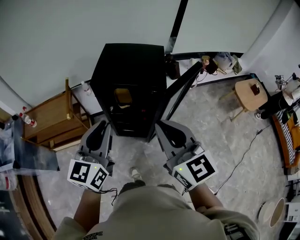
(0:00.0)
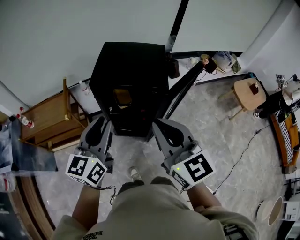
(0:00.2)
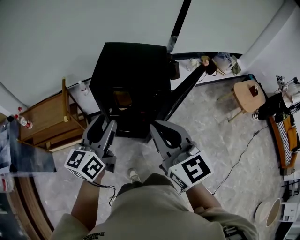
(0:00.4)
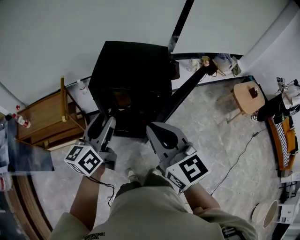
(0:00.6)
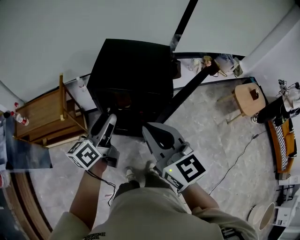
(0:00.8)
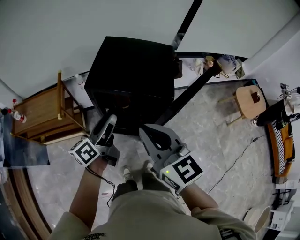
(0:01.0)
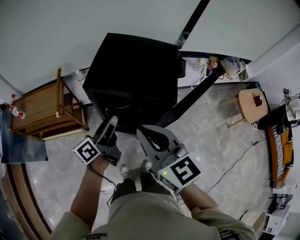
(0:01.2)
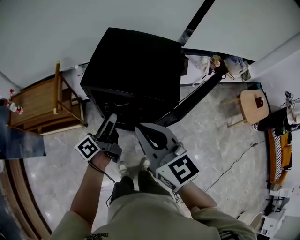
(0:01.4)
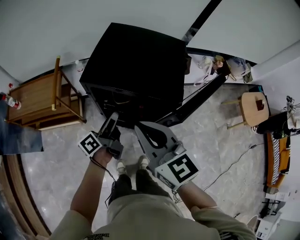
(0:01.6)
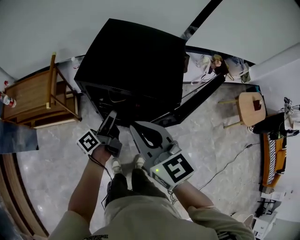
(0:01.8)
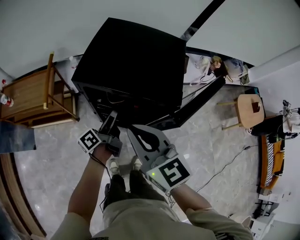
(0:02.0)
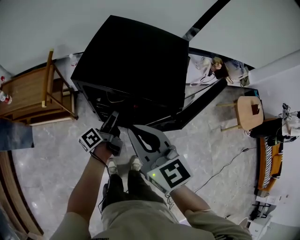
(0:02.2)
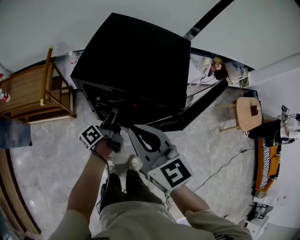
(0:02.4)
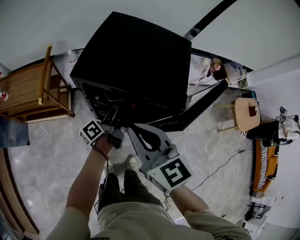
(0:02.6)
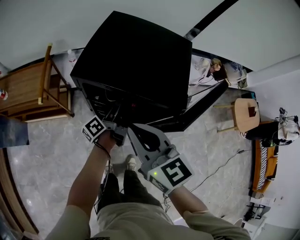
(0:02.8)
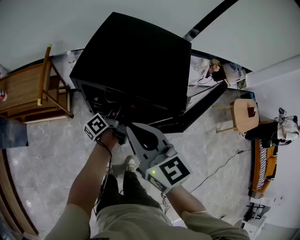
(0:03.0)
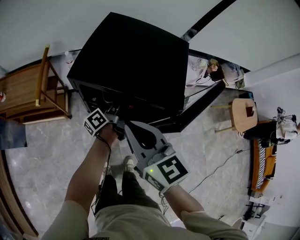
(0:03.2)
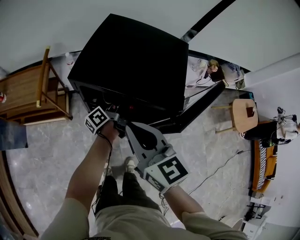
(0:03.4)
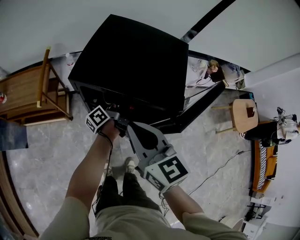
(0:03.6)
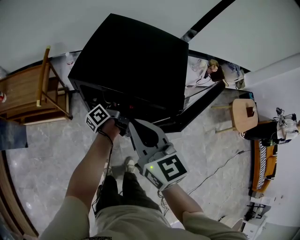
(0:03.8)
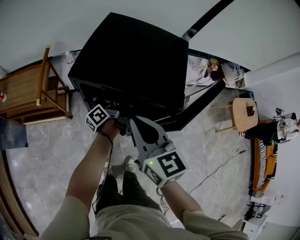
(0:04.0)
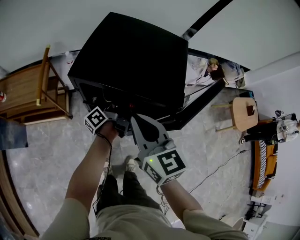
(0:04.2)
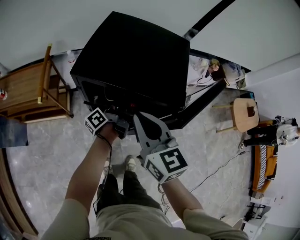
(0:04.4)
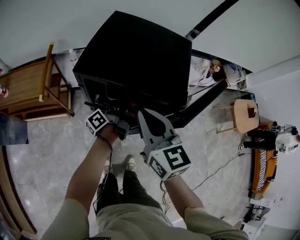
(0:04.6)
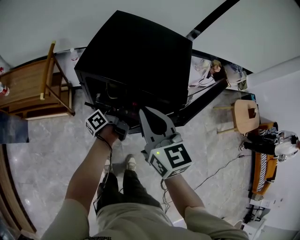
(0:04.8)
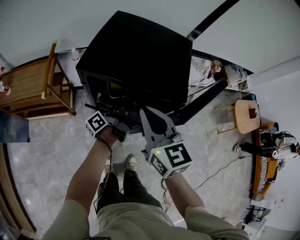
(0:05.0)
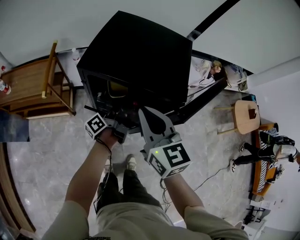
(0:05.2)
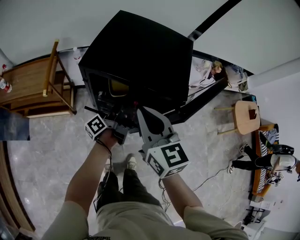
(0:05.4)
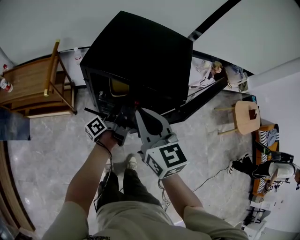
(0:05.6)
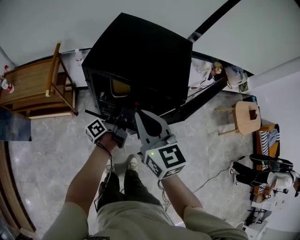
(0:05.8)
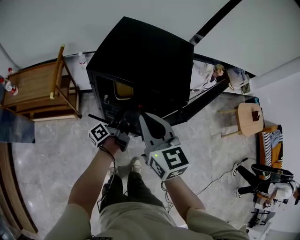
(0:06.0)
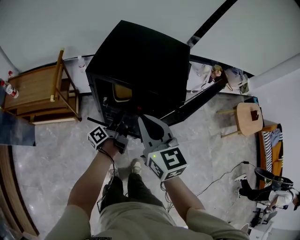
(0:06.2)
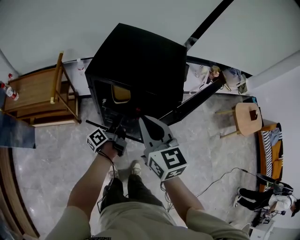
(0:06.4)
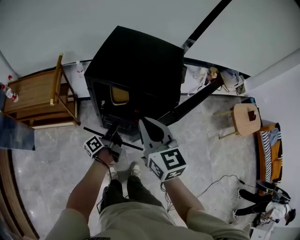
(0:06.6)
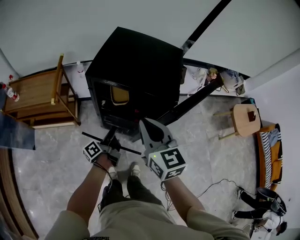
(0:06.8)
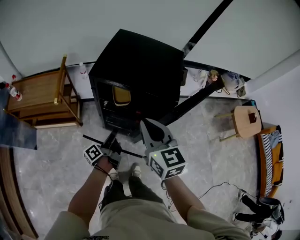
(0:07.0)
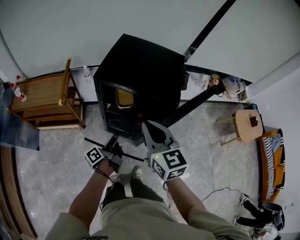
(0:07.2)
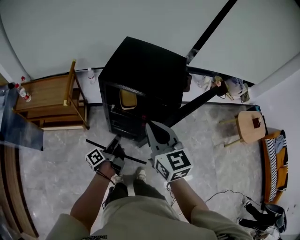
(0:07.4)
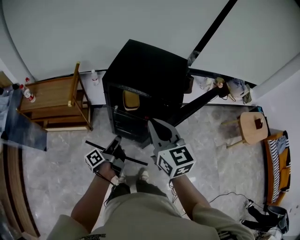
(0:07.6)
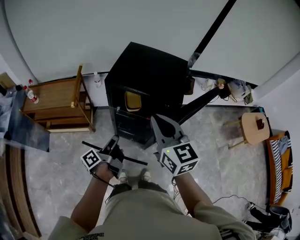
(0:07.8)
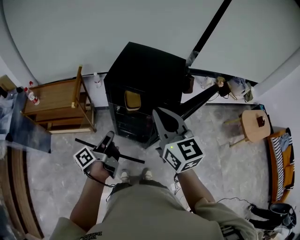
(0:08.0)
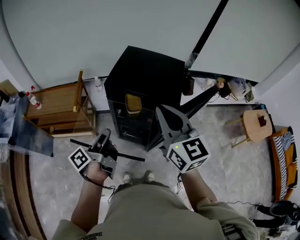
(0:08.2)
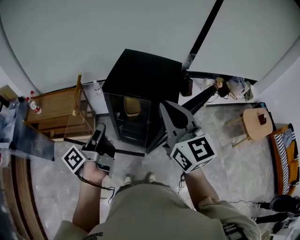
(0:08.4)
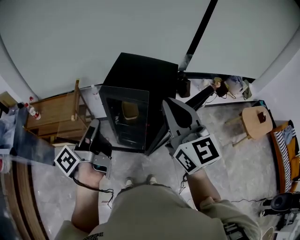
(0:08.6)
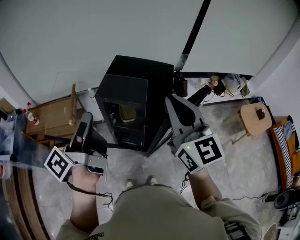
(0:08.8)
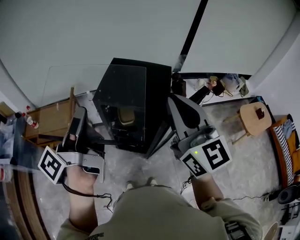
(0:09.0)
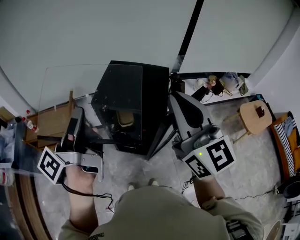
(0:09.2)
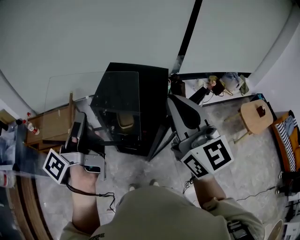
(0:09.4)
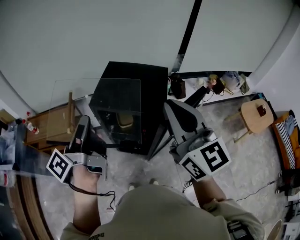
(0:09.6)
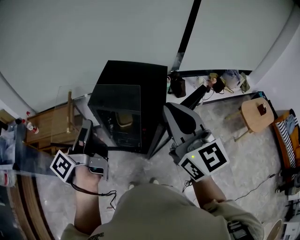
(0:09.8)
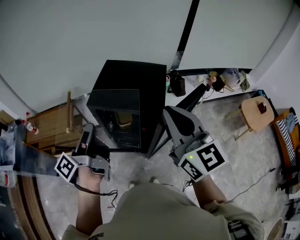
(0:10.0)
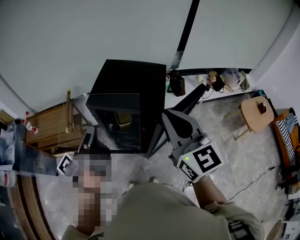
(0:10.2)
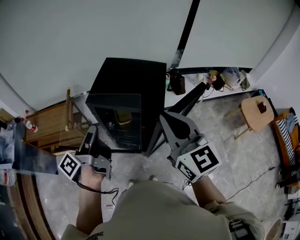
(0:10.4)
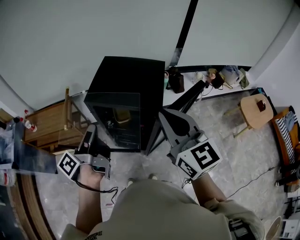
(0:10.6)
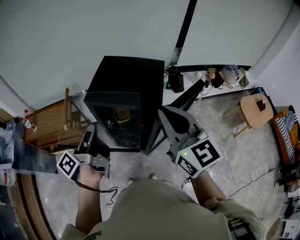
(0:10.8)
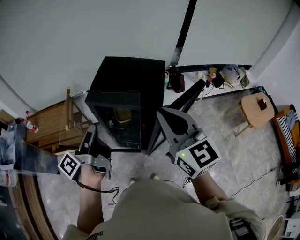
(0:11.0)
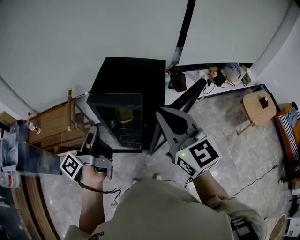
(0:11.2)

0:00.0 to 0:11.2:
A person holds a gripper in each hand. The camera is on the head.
0:00.0 to 0:01.6: The left gripper goes some 30 cm downward and forward, rotates around the line of its fingers by about 60 degrees, counterclockwise from behind, and opens, while the right gripper heads forward and downward, covering approximately 20 cm.
0:01.6 to 0:03.2: The right gripper travels downward by about 5 cm, while the left gripper goes some 15 cm downward, forward and to the right.
0:03.2 to 0:04.8: The left gripper closes its fingers.
0:04.8 to 0:06.4: The left gripper shifts some 10 cm backward; the right gripper travels backward by roughly 5 cm.
0:06.4 to 0:08.0: The right gripper heads upward, covering about 10 cm. Meanwhile the left gripper heads upward, backward and to the left, covering some 20 cm.
0:08.0 to 0:09.6: The left gripper moves upward, some 25 cm. Meanwhile the right gripper goes approximately 15 cm upward and to the right.
0:09.6 to 0:11.2: Both grippers move downward, some 10 cm.

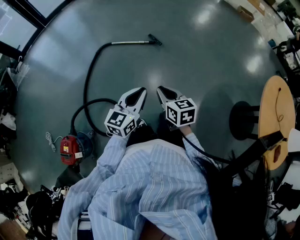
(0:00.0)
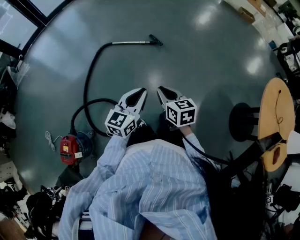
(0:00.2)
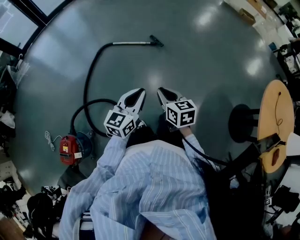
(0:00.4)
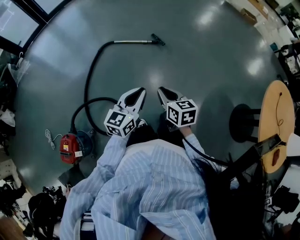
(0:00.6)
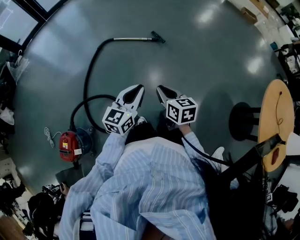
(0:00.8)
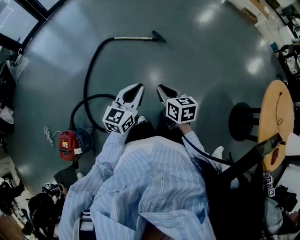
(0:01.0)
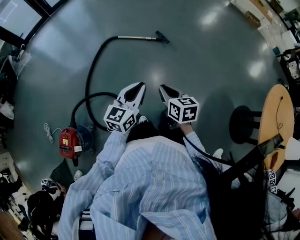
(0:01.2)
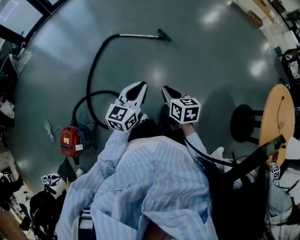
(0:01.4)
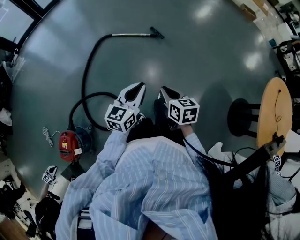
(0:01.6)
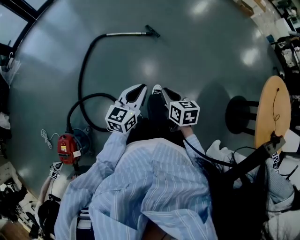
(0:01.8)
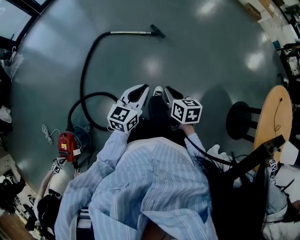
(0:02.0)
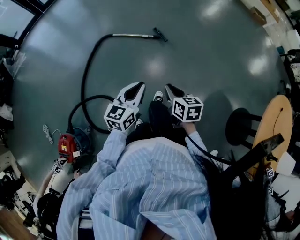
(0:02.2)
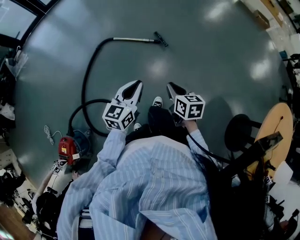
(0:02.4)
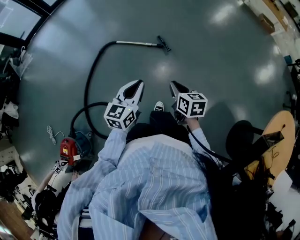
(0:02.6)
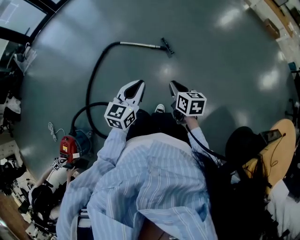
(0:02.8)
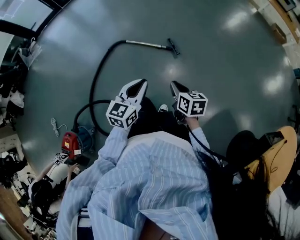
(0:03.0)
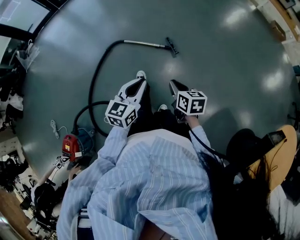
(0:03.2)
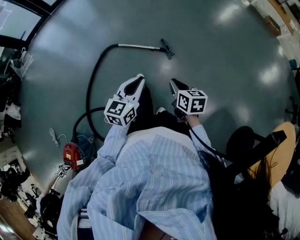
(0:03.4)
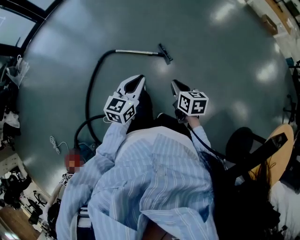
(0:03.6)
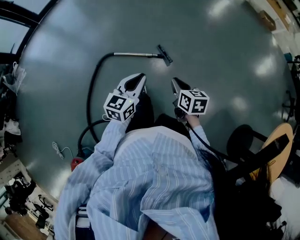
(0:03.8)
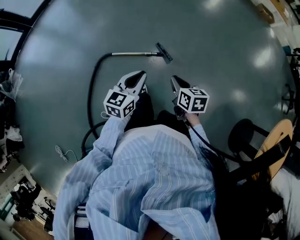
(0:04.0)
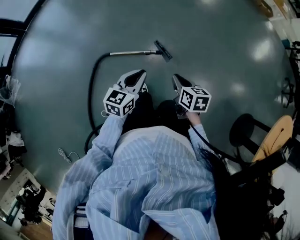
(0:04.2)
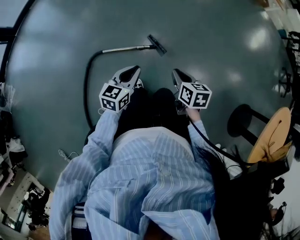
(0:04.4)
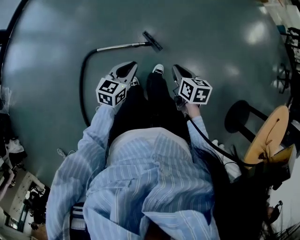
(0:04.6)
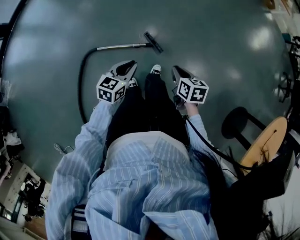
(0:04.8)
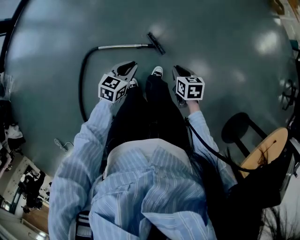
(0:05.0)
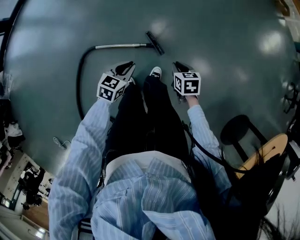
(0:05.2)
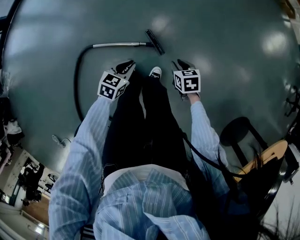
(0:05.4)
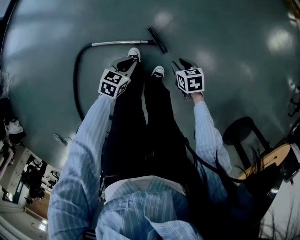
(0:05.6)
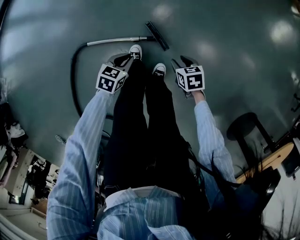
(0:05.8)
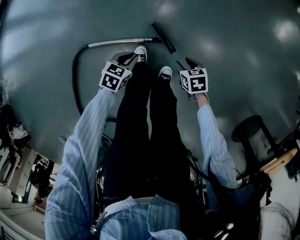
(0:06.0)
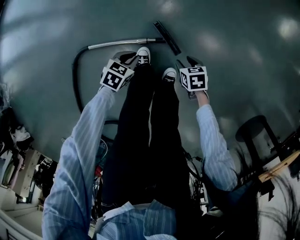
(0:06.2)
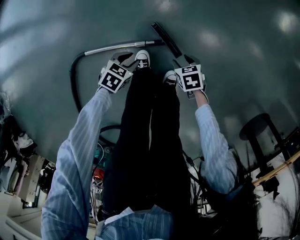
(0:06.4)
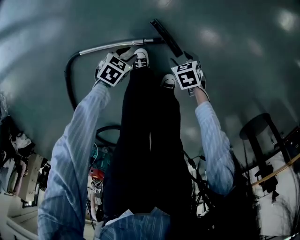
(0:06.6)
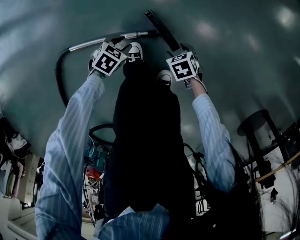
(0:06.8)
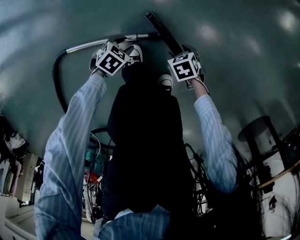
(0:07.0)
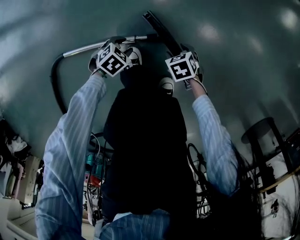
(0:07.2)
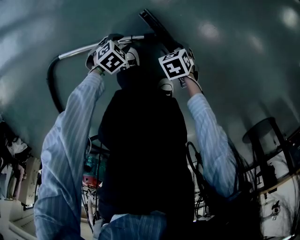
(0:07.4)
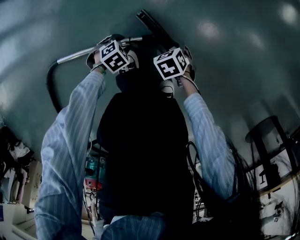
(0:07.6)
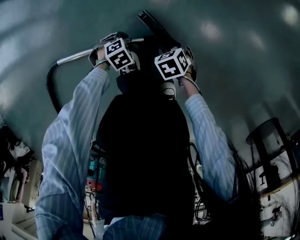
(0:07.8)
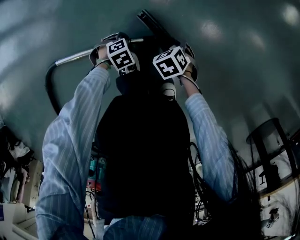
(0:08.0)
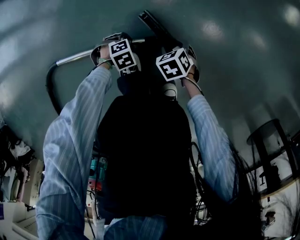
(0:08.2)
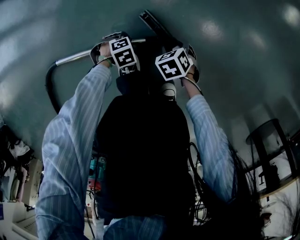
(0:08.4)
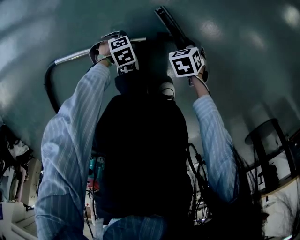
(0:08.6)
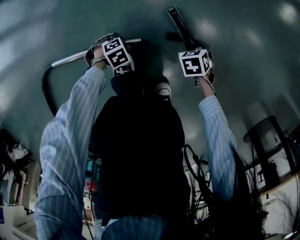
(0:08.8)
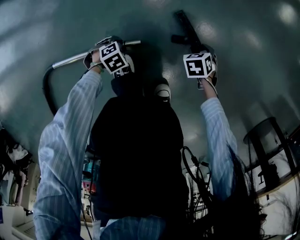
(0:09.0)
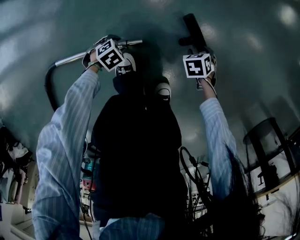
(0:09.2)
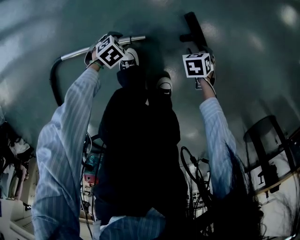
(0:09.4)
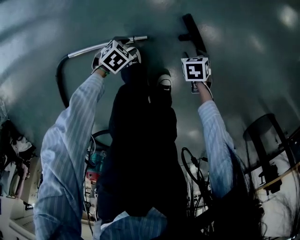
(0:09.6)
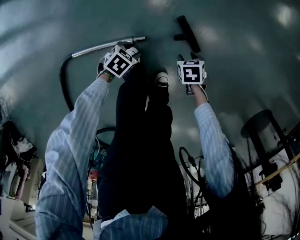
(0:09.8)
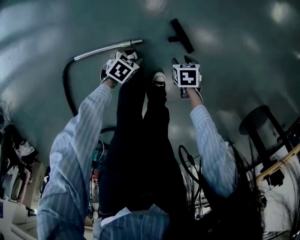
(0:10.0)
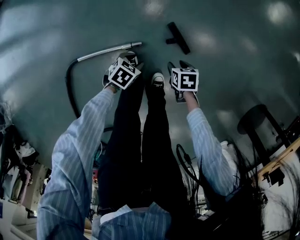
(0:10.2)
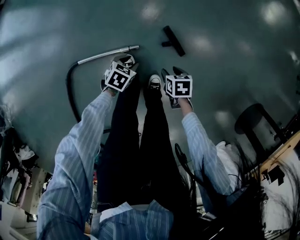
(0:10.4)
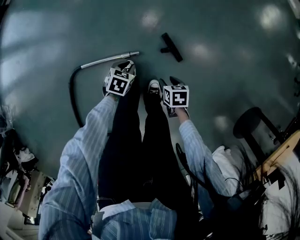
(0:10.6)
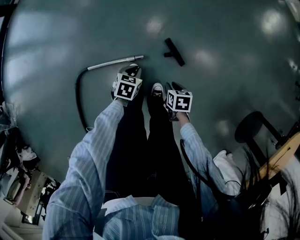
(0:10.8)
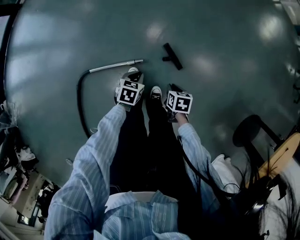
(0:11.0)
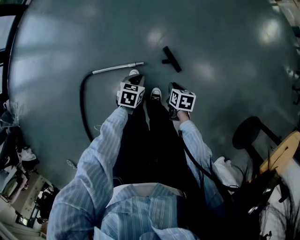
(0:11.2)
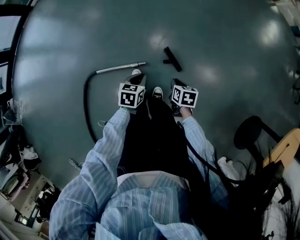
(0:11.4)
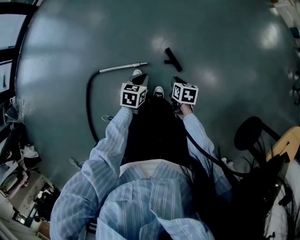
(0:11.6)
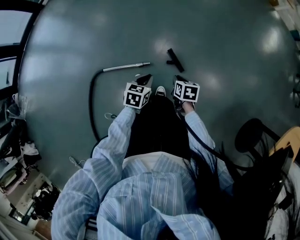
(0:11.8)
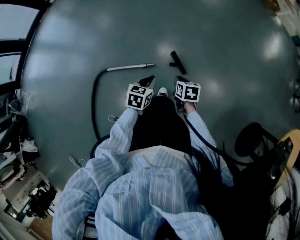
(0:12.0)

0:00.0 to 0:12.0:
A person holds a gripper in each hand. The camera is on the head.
0:00.0 to 0:01.6: The left gripper moves about 5 cm.
0:01.6 to 0:03.0: The grippers both shift forward by about 30 cm.
0:03.0 to 0:04.4: The grippers both shift forward by roughly 35 cm. The left gripper changes its angle by some 20 degrees; the right gripper swivels about 20 degrees.
0:04.4 to 0:06.0: The two grippers go approximately 50 cm downward and forward. The left gripper turns by roughly 30 degrees. Meanwhile the right gripper turns by about 30 degrees, and opens its fingers.
0:06.0 to 0:07.6: The grippers both shift downward by about 30 cm. The left gripper changes its angle by approximately 40 degrees, and opens up.
0:07.6 to 0:09.0: The right gripper moves about 15 cm.
0:09.0 to 0:10.4: The two grippers go roughly 35 cm upward. The left gripper swivels approximately 40 degrees, while the right gripper swivels roughly 30 degrees.
0:10.4 to 0:12.0: Both grippers move upward, about 30 cm. The right gripper closes. Meanwhile the left gripper swivels approximately 30 degrees, and closes.
